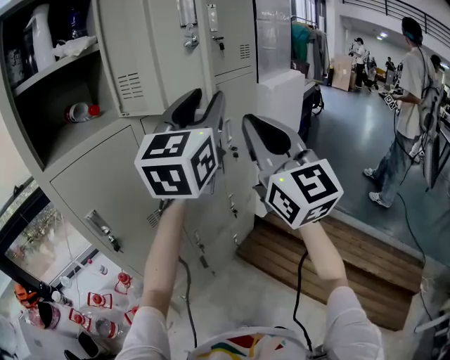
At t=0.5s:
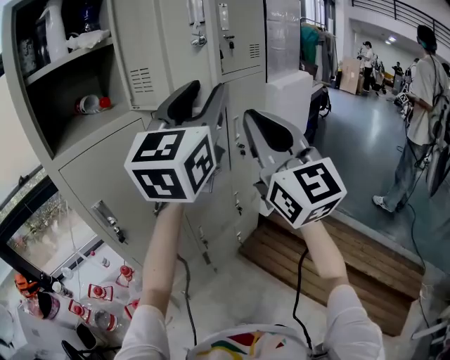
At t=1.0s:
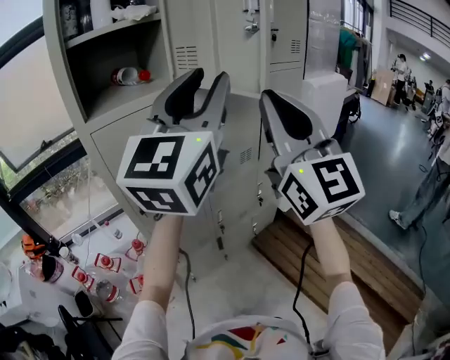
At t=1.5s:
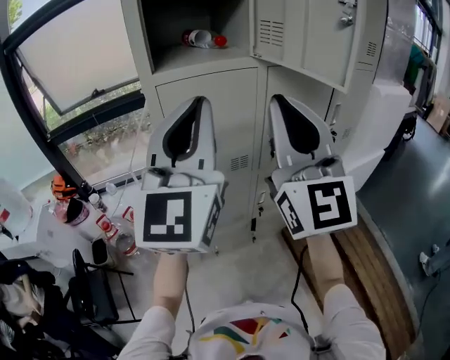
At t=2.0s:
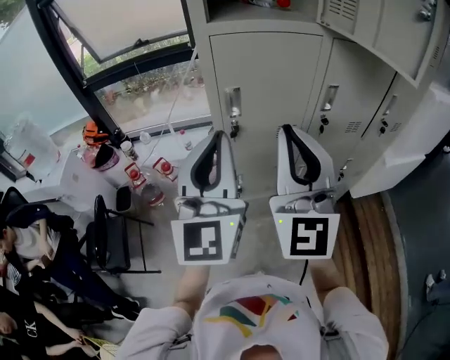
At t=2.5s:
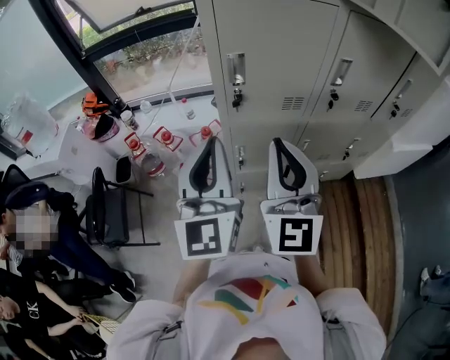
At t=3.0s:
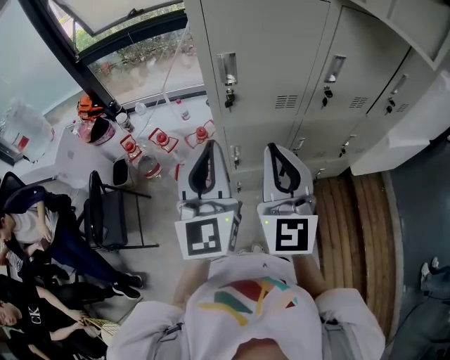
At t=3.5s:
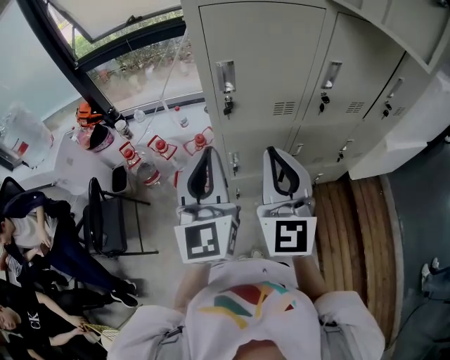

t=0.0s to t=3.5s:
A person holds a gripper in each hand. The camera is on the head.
t=0.0s to t=2.0s: The right gripper changes place by roughly 30 cm, and turns by some 20 degrees. The left gripper shifts by roughly 40 cm, turns by approximately 50 degrees, and closes.
t=2.0s to t=3.5s: The two grippers go roughly 10 cm downward.

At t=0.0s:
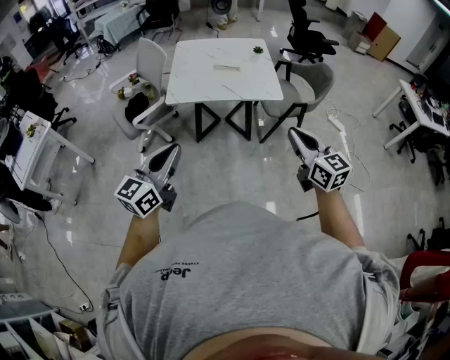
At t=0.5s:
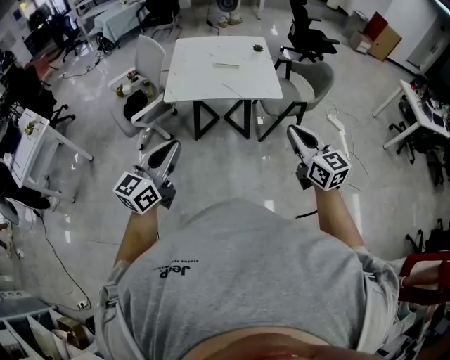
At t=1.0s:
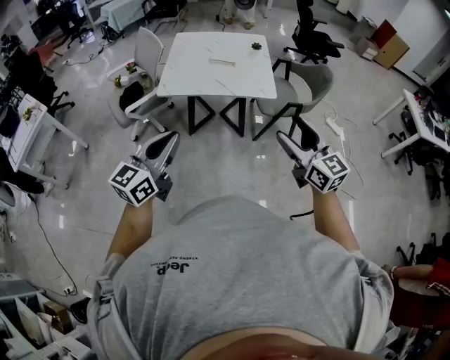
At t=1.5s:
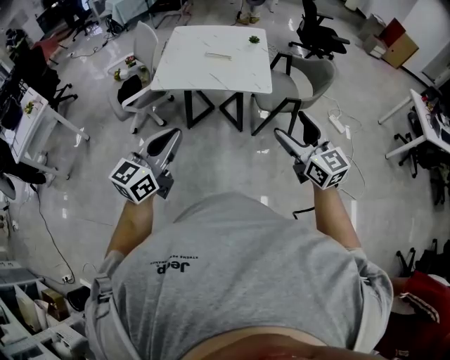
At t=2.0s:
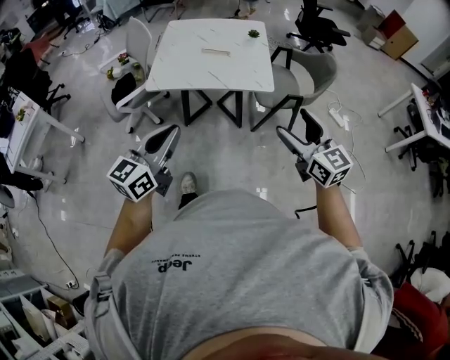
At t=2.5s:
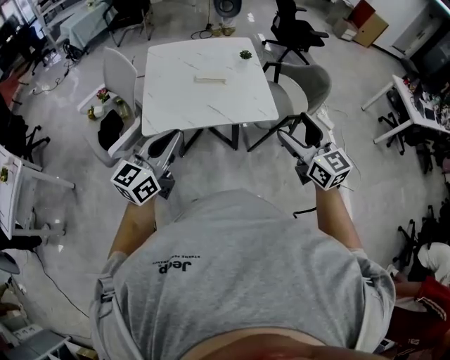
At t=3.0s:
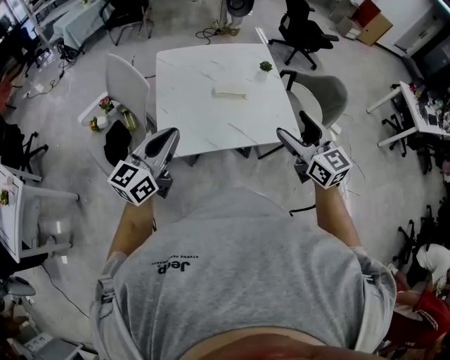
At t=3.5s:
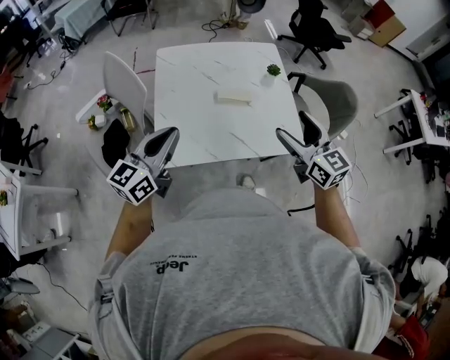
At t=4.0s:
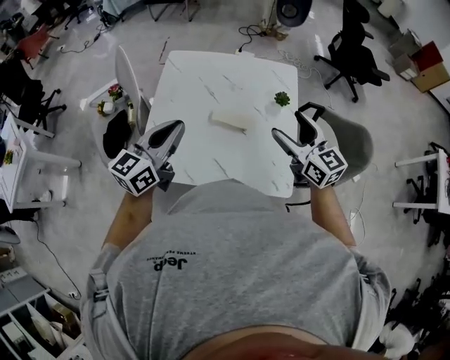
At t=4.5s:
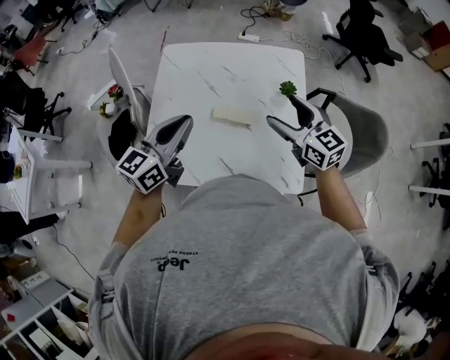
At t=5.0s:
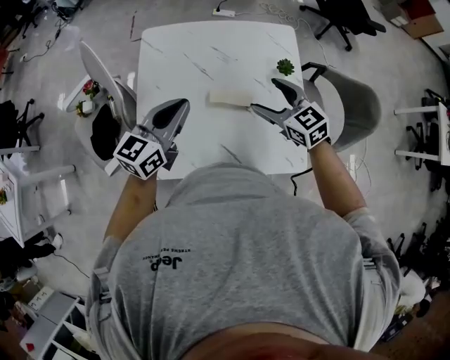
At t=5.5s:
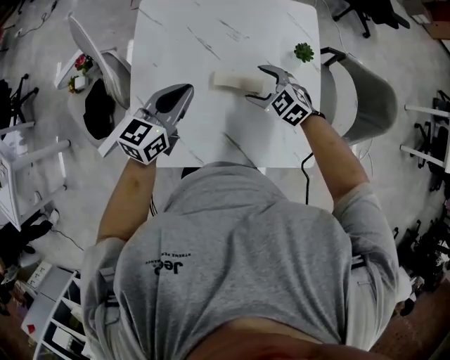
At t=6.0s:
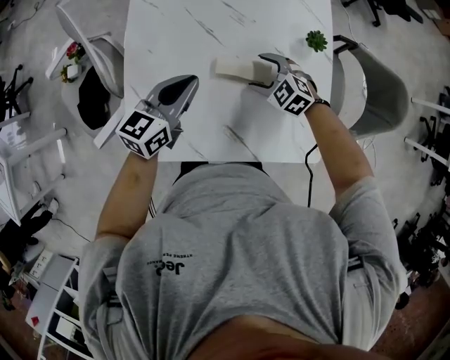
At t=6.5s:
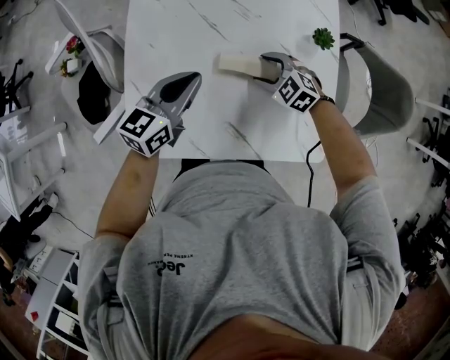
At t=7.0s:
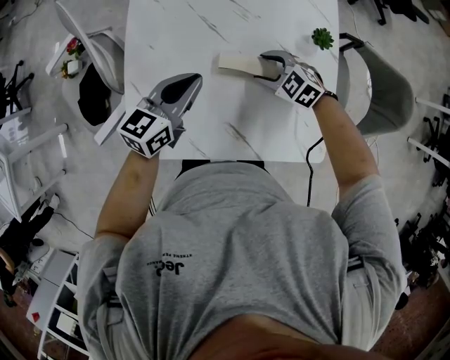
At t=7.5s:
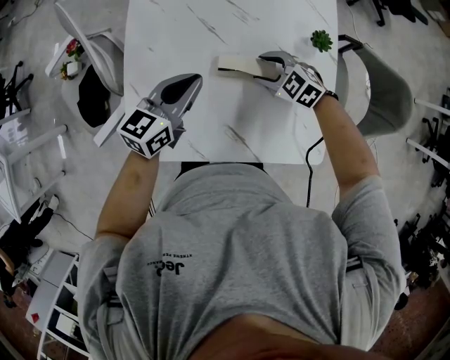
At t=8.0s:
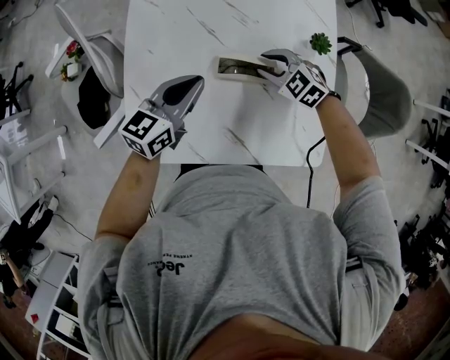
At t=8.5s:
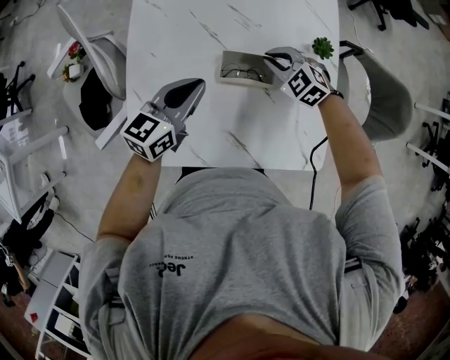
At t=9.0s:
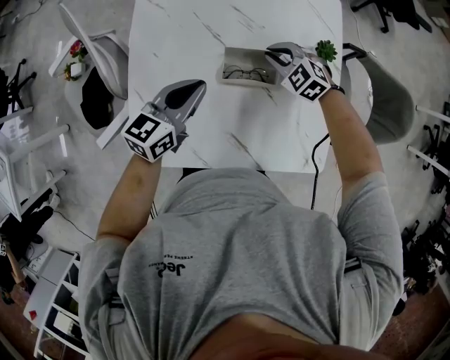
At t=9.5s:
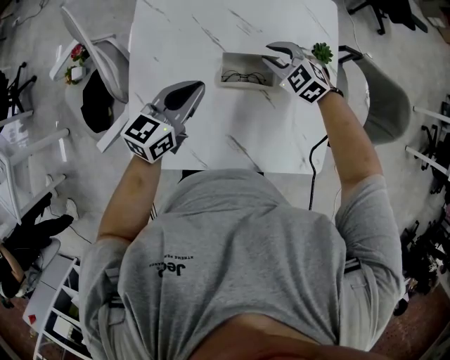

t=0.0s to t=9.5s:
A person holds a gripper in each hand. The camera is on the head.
t=0.0s to t=2.0s: Both grippers move to the right and forward, about 15 cm. The right gripper opens up.
t=2.0s to t=4.0s: The two grippers travel together, forward, approximately 60 cm.
t=4.0s to t=5.5s: The left gripper goes approximately 20 cm downward and forward, while the right gripper shifts roughly 30 cm downward, and points its fingers some 40 degrees further downward.
t=5.5s to t=7.5s: The left gripper moves roughly 5 cm.
t=7.5s to t=9.5s: The right gripper travels forward by approximately 10 cm, and closes up.

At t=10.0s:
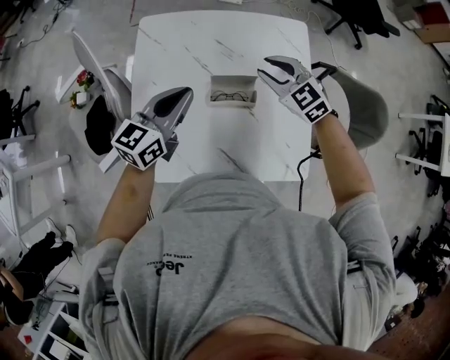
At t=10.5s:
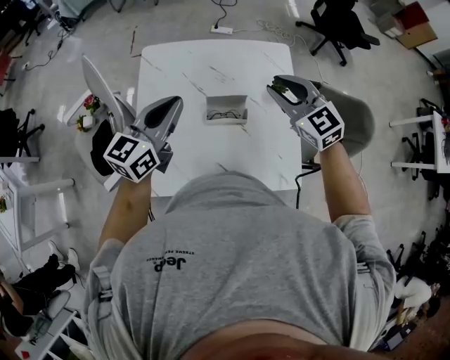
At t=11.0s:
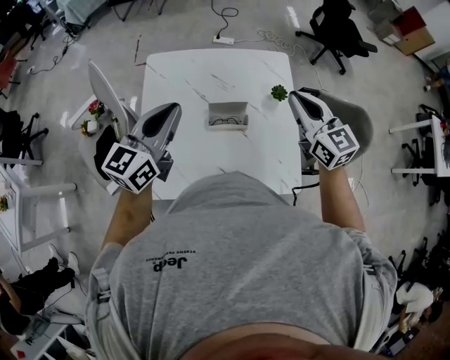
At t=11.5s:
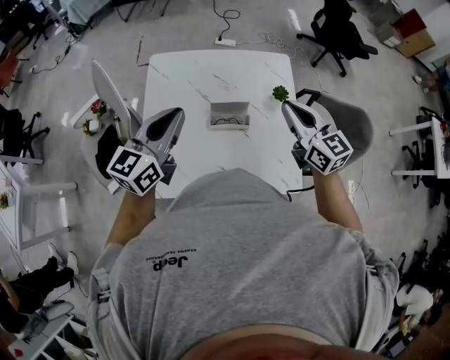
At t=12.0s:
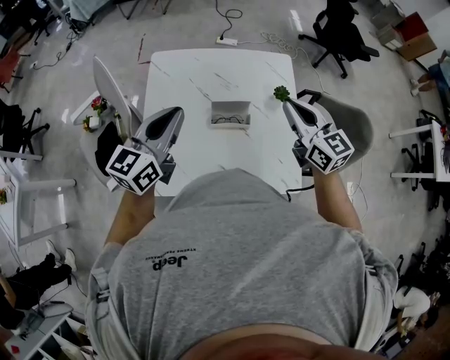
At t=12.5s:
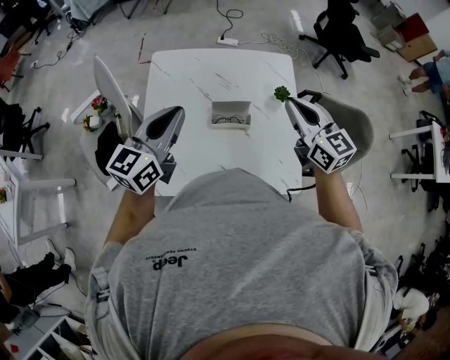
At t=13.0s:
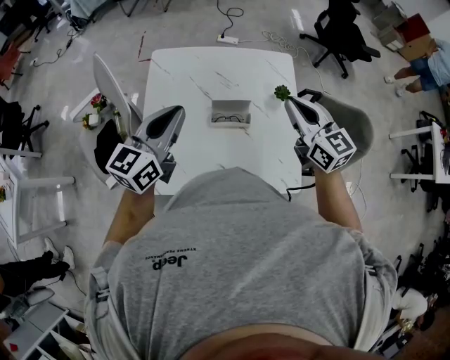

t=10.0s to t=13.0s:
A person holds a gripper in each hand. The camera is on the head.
t=10.0s to t=11.5s: The right gripper shifts approximately 20 cm upward, backward and to the right, and changes its angle by roughly 40 degrees; the left gripper shifts about 15 cm upward and backward.
t=11.5s to t=13.0s: Neither gripper changes place.

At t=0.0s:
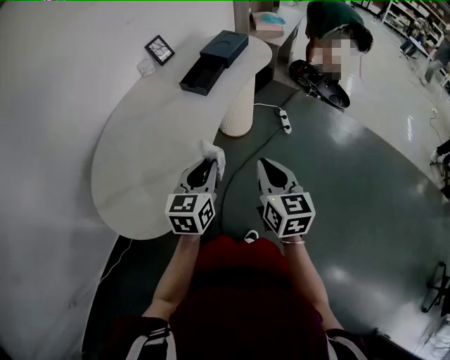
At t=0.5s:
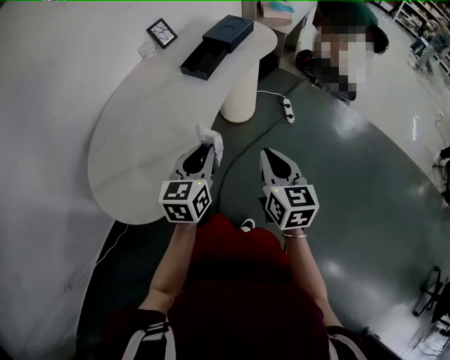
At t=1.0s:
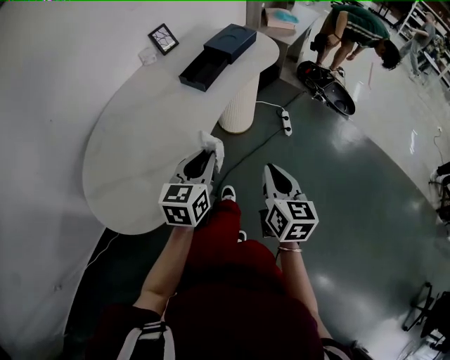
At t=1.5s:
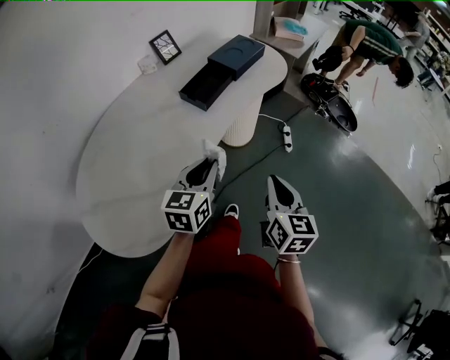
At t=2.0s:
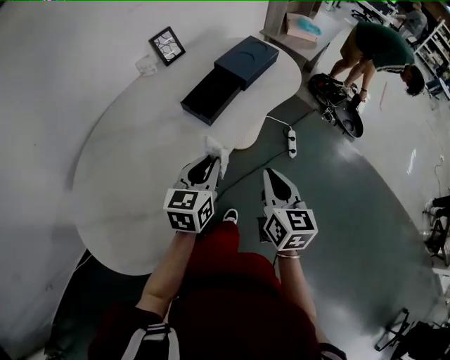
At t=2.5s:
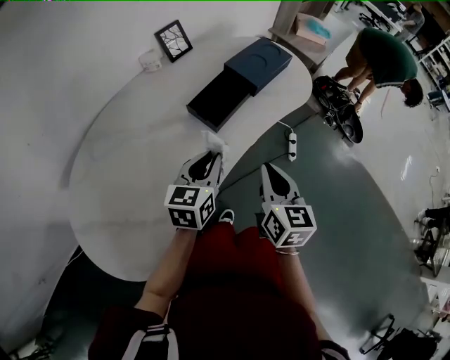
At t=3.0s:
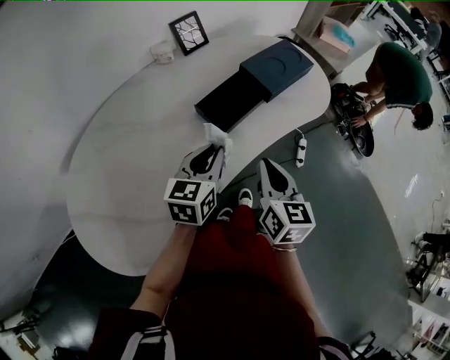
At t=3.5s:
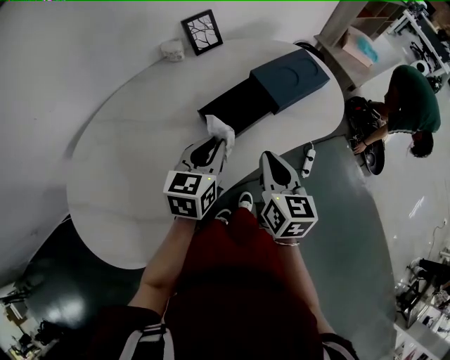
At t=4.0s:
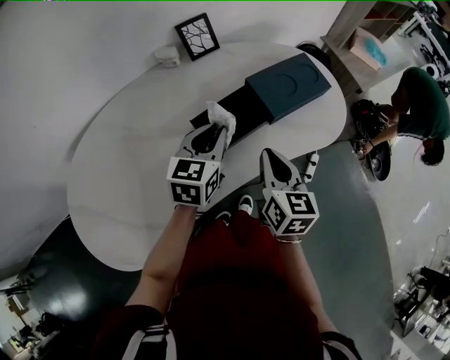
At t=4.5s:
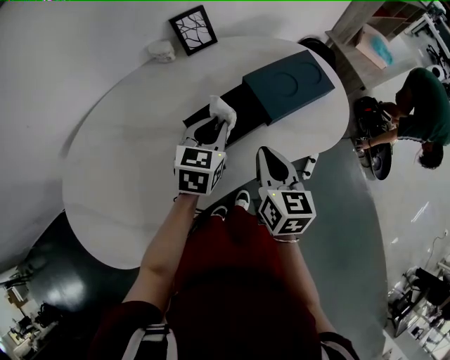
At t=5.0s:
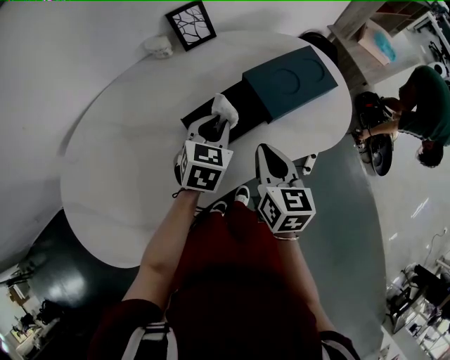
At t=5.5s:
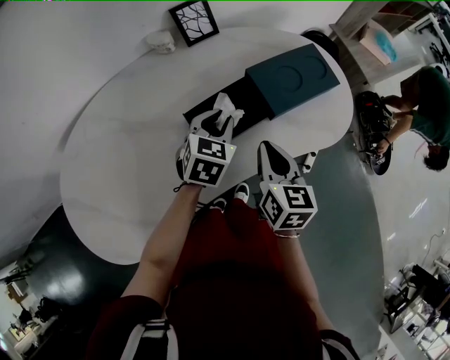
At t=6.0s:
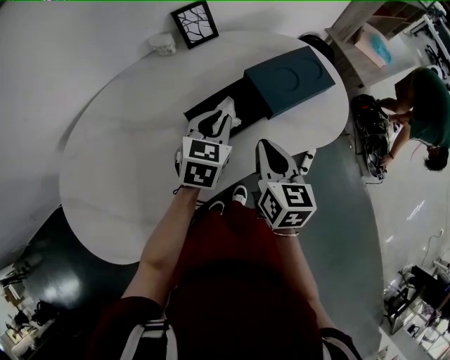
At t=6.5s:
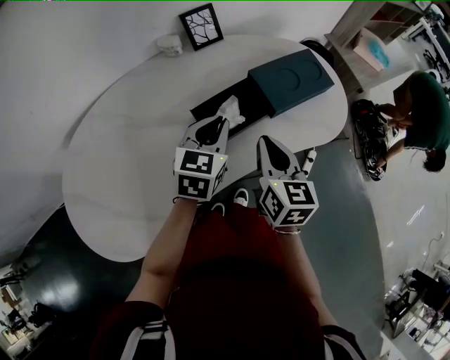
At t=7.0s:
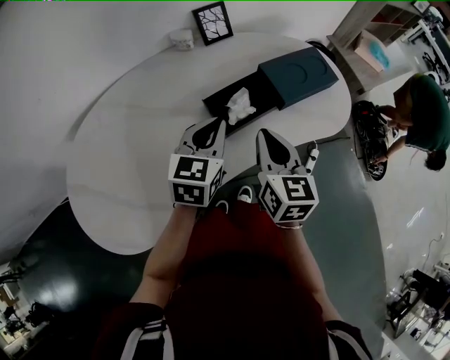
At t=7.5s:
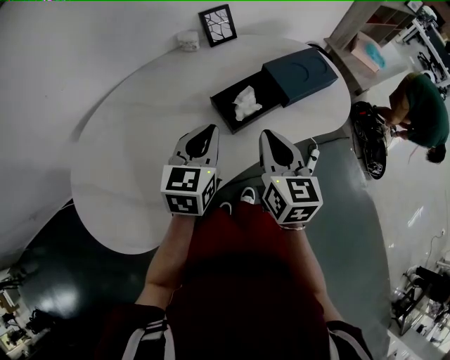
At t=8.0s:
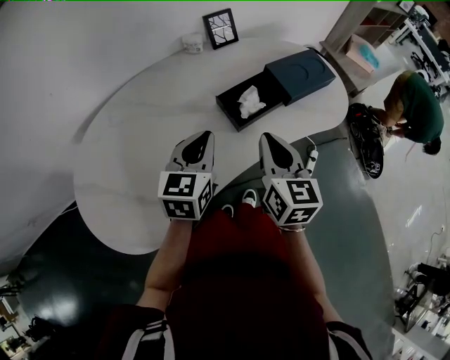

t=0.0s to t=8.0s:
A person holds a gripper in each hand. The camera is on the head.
t=0.0s to t=2.0s: The two grippers go some 20 cm forward.
t=2.0s to t=4.0s: Both grippers move forward, roughly 20 cm. The right gripper rotates approximately 20 degrees.
t=6.0s to t=8.0s: Both grippers move backward, to the left and upward, roughly 15 cm.

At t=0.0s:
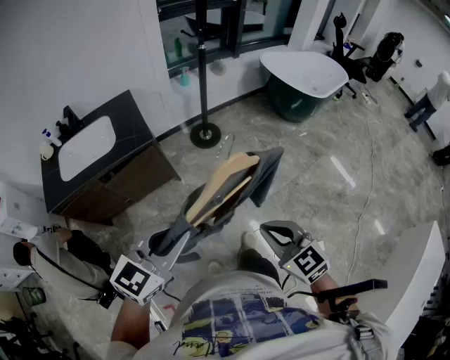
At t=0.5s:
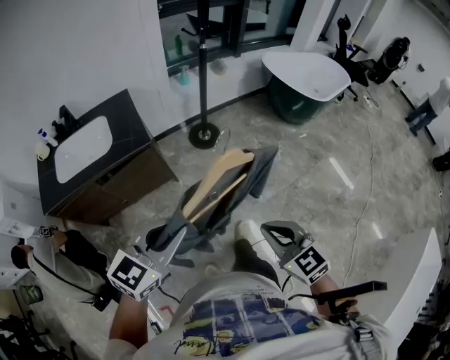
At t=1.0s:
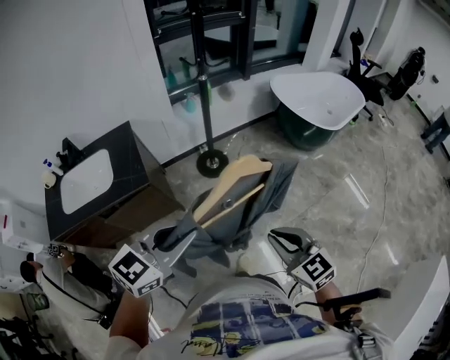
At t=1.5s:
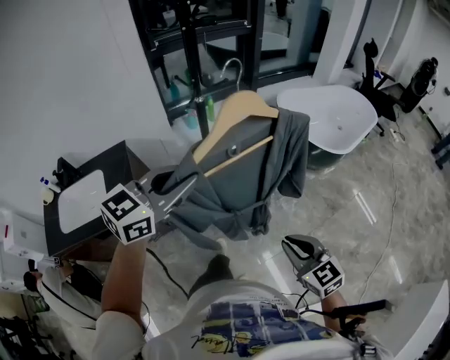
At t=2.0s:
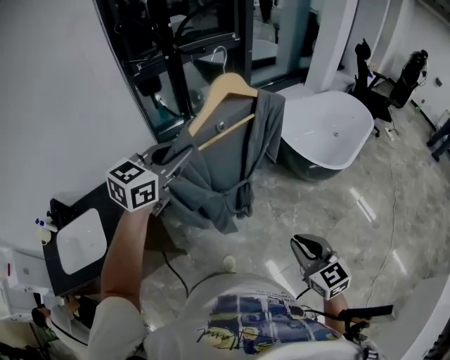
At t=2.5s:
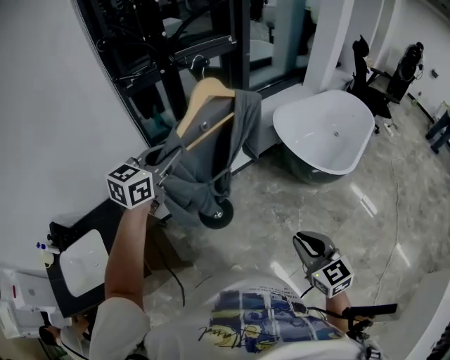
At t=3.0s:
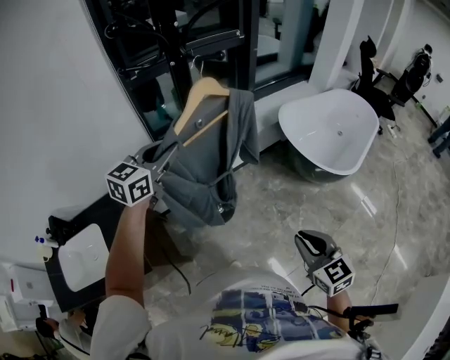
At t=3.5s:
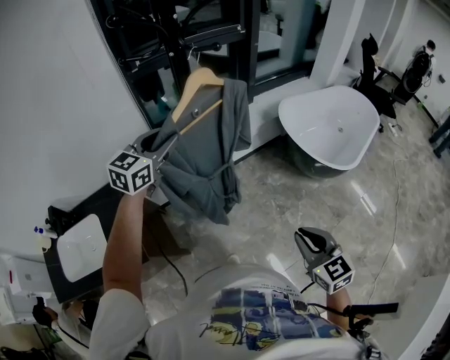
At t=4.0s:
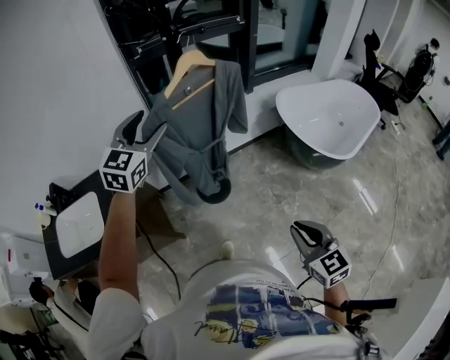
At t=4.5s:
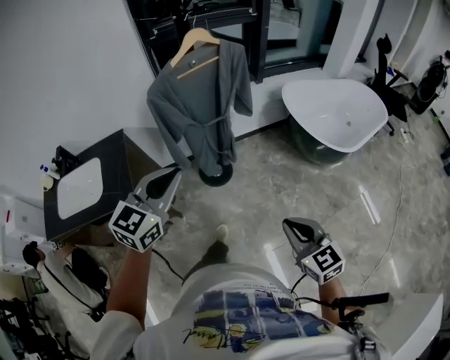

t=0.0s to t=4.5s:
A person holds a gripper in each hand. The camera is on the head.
t=0.0s to t=2.0s: The two grippers travel together, forward, roughly 60 cm.
t=2.0s to t=4.5s: The left gripper goes some 20 cm backward, and opens and closes again; the right gripper goes roughly 5 cm backward.
